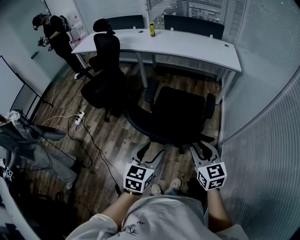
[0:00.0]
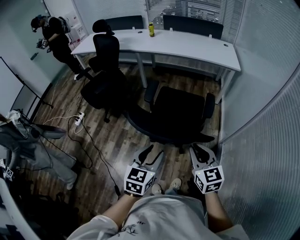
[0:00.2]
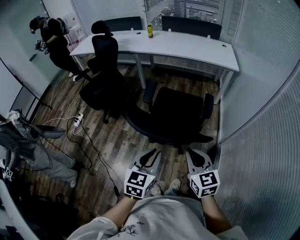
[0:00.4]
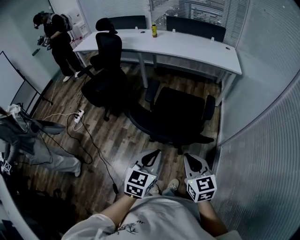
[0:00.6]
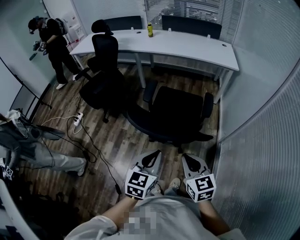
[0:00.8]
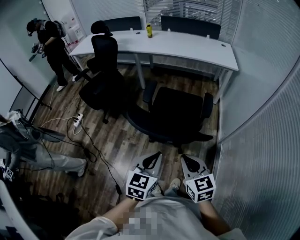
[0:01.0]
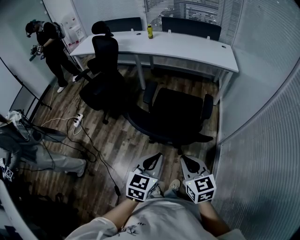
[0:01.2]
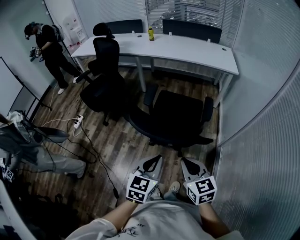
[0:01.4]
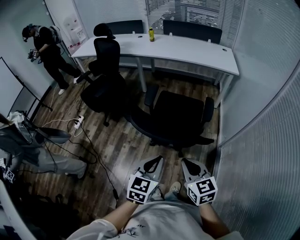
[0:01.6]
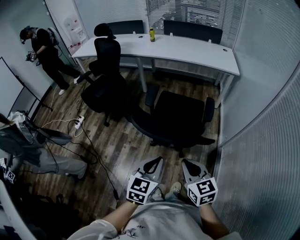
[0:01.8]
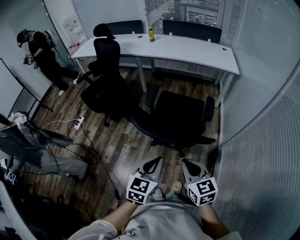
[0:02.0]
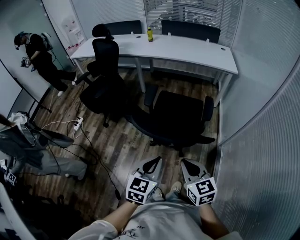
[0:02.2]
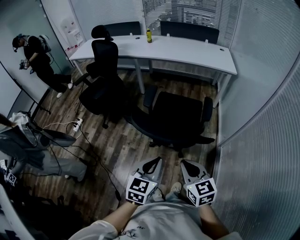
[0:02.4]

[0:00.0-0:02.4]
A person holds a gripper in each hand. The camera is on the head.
0:00.0 to 0:01.2: The right gripper heads backward, covering approximately 5 cm, and closes its fingers; the left gripper closes its fingers.
0:01.2 to 0:02.4: The grippers move only a little.

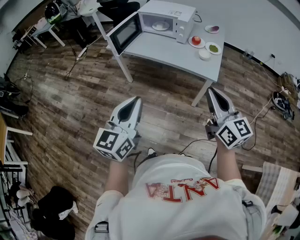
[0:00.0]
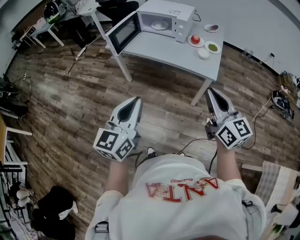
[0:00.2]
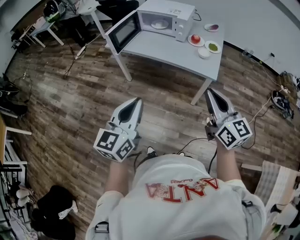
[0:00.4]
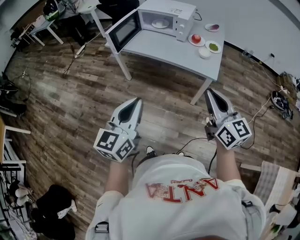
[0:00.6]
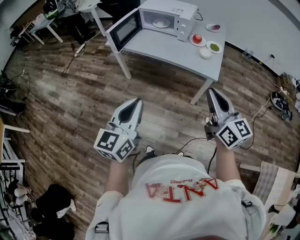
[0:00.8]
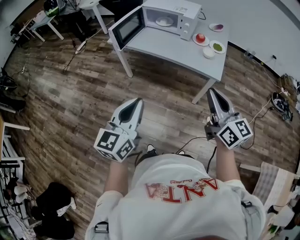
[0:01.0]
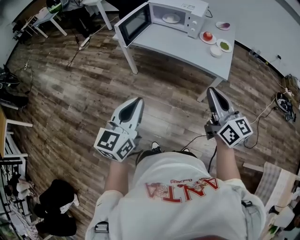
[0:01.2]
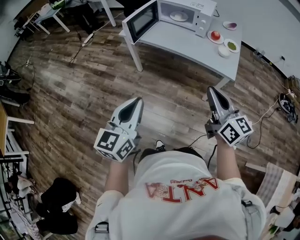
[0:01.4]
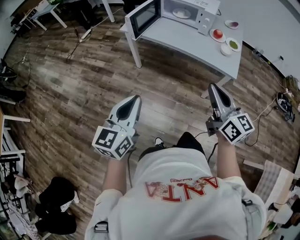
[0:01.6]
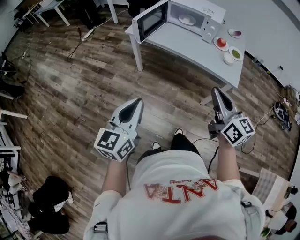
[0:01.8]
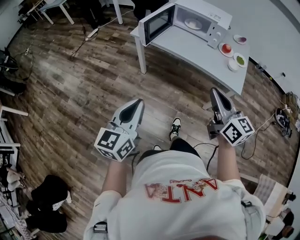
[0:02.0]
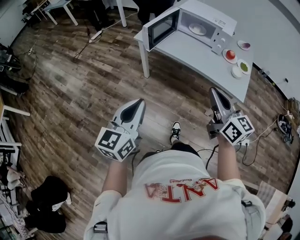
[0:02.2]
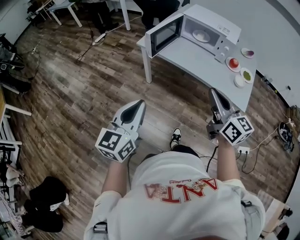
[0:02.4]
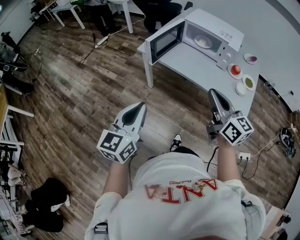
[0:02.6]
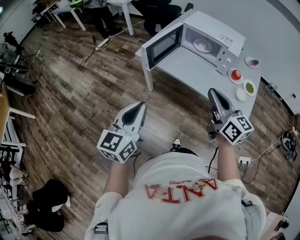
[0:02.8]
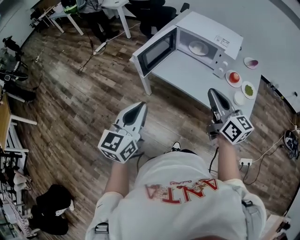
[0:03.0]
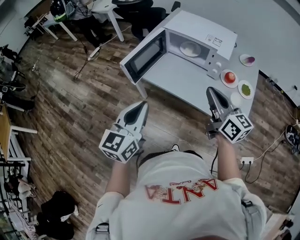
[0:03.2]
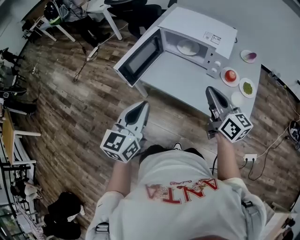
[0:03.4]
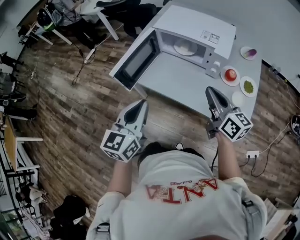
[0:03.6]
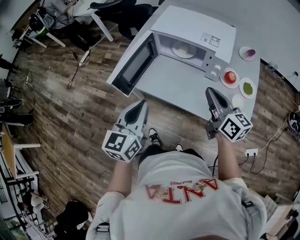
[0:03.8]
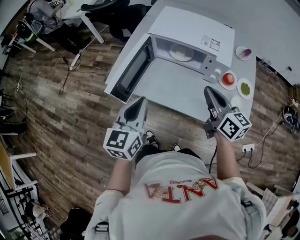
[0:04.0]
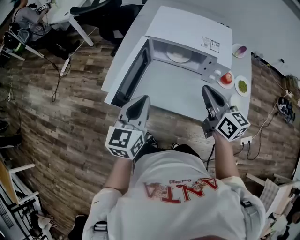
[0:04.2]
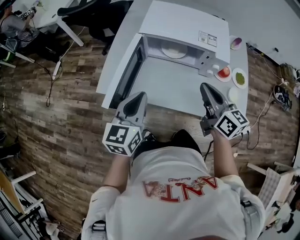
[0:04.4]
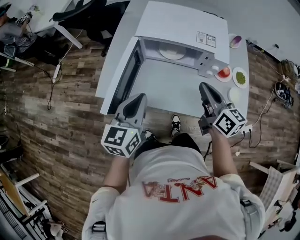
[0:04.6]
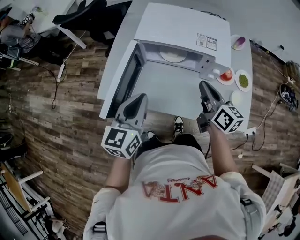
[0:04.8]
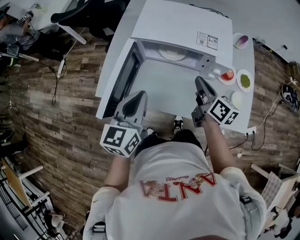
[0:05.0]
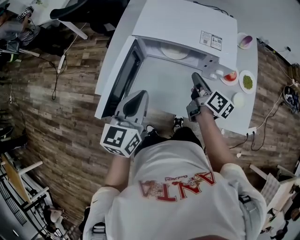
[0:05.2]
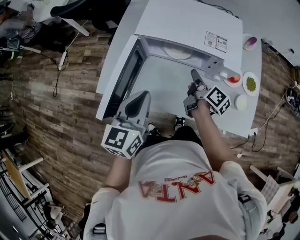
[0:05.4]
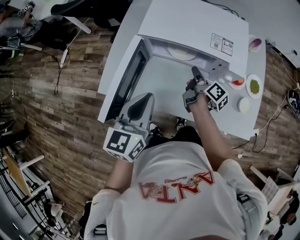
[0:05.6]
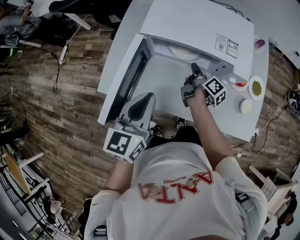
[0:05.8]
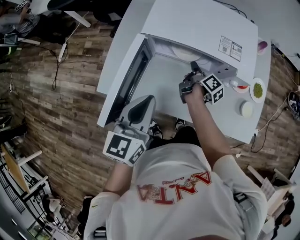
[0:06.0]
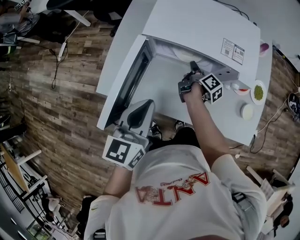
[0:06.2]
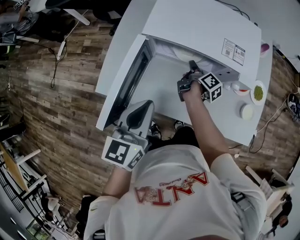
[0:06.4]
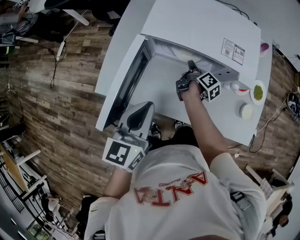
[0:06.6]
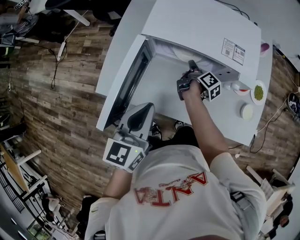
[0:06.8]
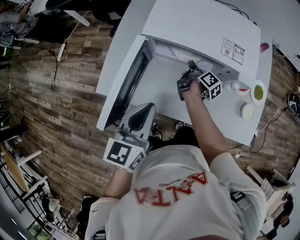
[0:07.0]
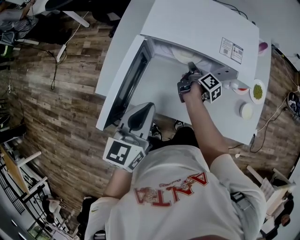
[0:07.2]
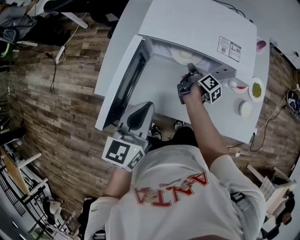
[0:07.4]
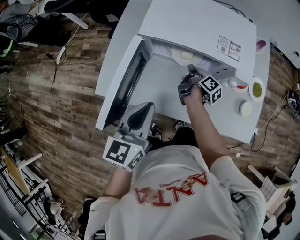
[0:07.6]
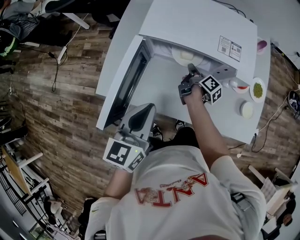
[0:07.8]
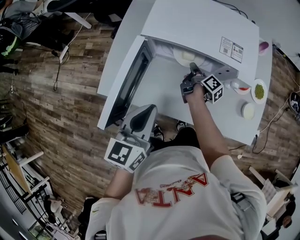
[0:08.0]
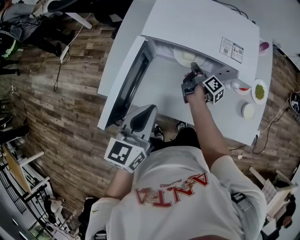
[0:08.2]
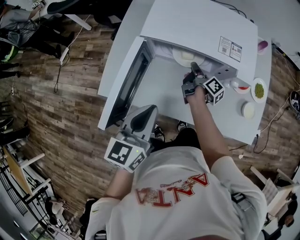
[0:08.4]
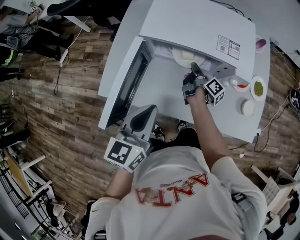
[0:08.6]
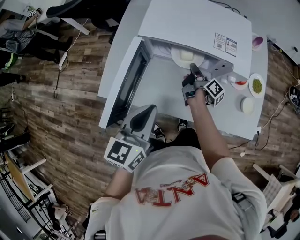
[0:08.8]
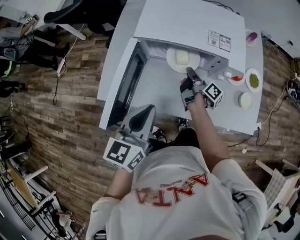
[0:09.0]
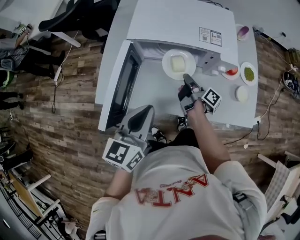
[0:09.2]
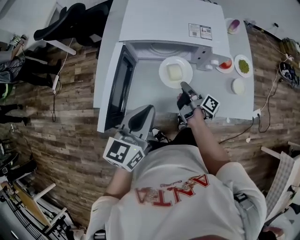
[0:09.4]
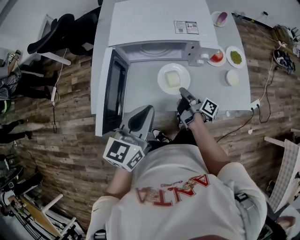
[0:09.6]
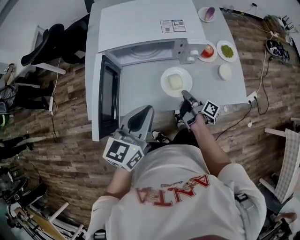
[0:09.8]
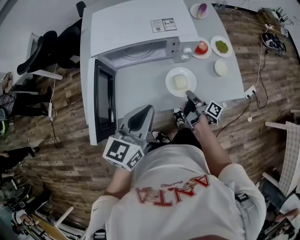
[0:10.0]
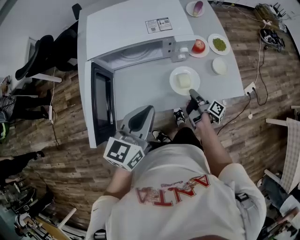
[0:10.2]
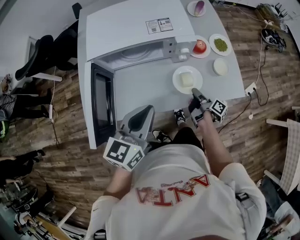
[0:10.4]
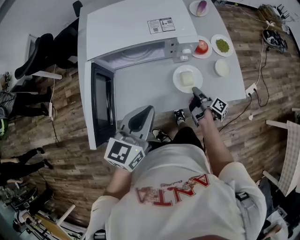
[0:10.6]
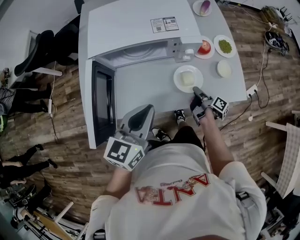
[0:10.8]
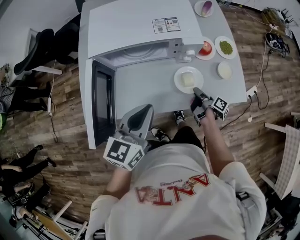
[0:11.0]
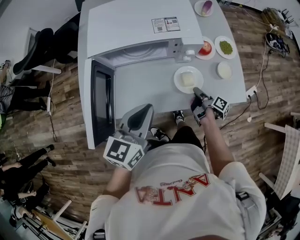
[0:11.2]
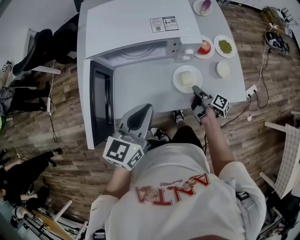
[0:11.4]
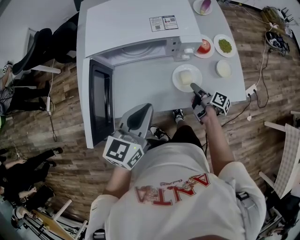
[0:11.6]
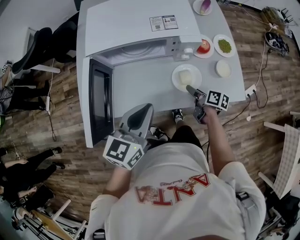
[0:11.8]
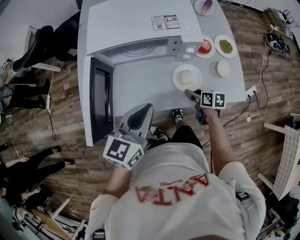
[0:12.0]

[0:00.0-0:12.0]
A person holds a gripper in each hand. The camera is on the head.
0:00.0 to 0:01.6: Both grippers travel together to the left, about 15 cm.
0:01.6 to 0:03.0: Both grippers travel together forward, approximately 25 cm.
0:03.0 to 0:04.4: The grippers both shift forward by roughly 25 cm. The right gripper rotates approximately 20 degrees.
0:04.4 to 0:06.0: The right gripper moves downward and forward, roughly 30 cm, and twists about 60 degrees clockwise, seen from behind, while the left gripper is displaced forward by roughly 5 cm.
0:06.0 to 0:07.6: There are only small adjustments of the grippers.
0:07.6 to 0:09.0: The right gripper moves about 5 cm.
0:09.0 to 0:10.4: The right gripper moves to the right and backward, roughly 25 cm. The left gripper shifts approximately 10 cm to the right, and changes its angle by approximately 20 degrees.
0:10.4 to 0:12.0: The right gripper turns by about 60 degrees, and opens its fingers.

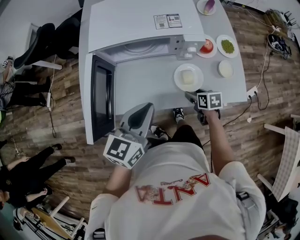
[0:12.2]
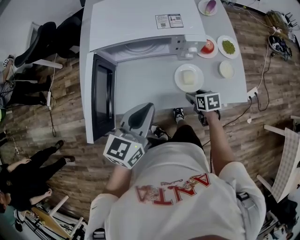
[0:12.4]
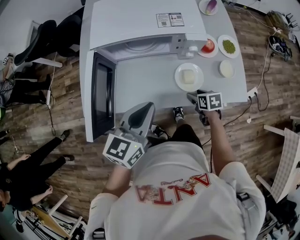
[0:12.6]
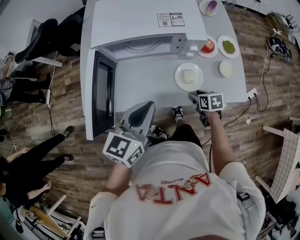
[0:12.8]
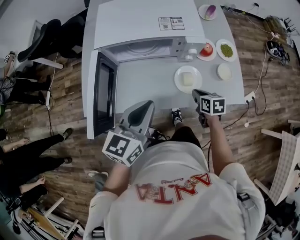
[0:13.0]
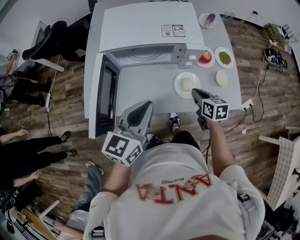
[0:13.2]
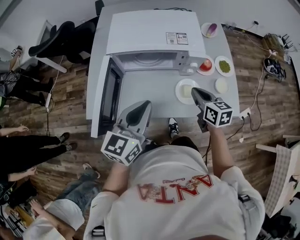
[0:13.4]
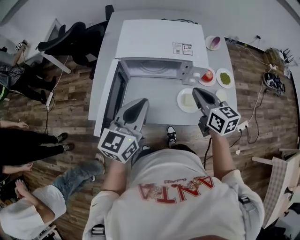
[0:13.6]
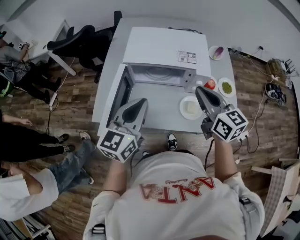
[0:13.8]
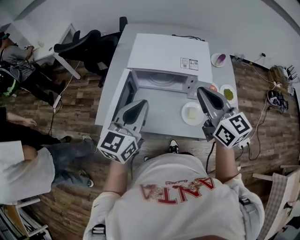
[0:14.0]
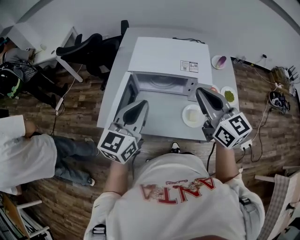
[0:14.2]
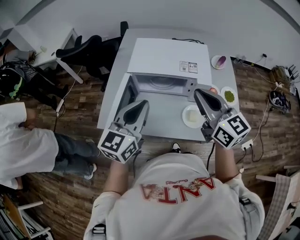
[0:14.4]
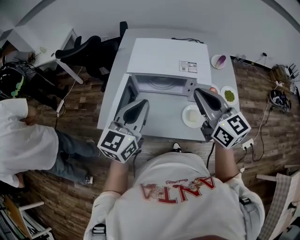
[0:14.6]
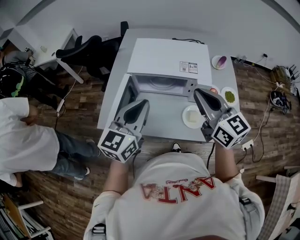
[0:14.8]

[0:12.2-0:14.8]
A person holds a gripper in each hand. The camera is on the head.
0:12.2 to 0:13.4: The left gripper shifts some 5 cm upward. The right gripper shifts approximately 20 cm upward, turns by roughly 30 degrees, and closes.
0:13.4 to 0:14.8: The left gripper goes some 10 cm upward. Meanwhile the right gripper heads upward, covering roughly 20 cm, and swivels approximately 30 degrees.

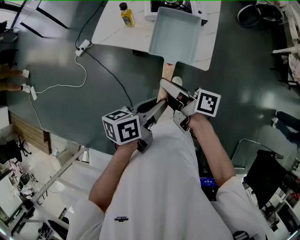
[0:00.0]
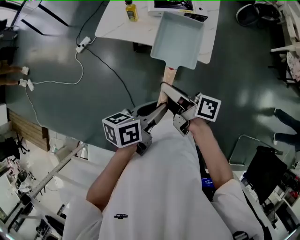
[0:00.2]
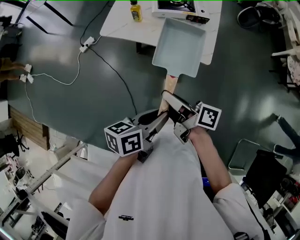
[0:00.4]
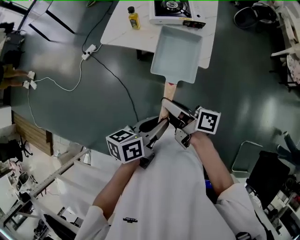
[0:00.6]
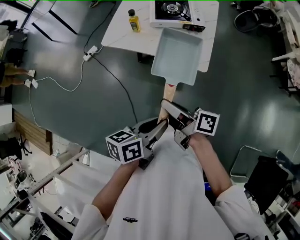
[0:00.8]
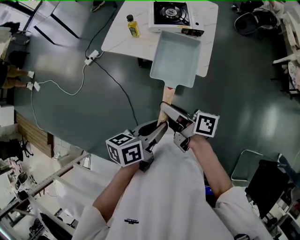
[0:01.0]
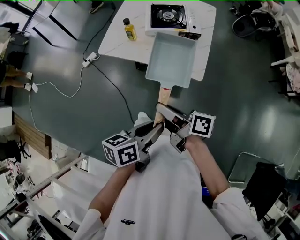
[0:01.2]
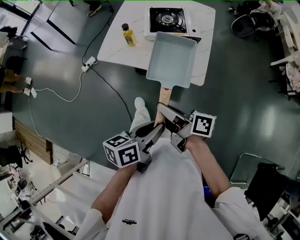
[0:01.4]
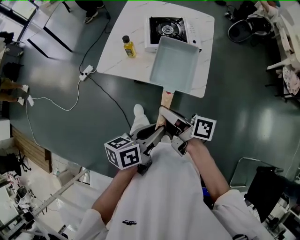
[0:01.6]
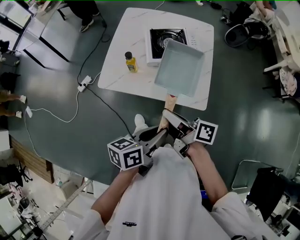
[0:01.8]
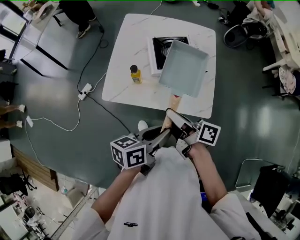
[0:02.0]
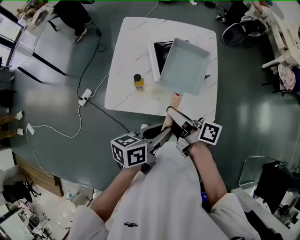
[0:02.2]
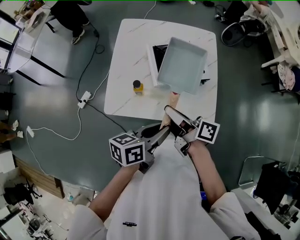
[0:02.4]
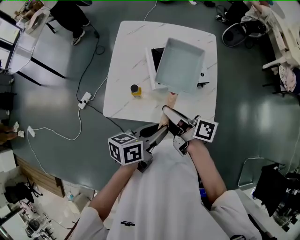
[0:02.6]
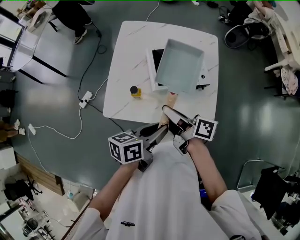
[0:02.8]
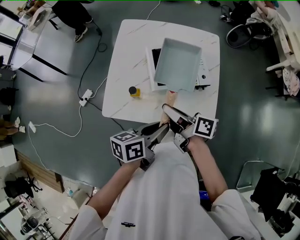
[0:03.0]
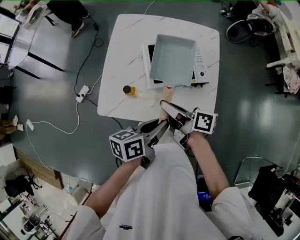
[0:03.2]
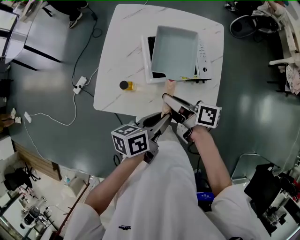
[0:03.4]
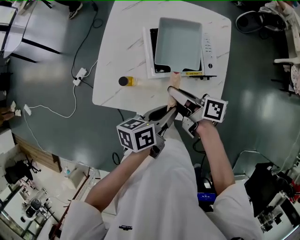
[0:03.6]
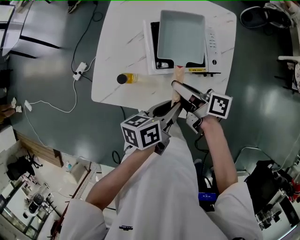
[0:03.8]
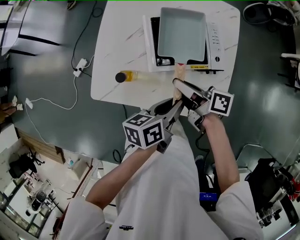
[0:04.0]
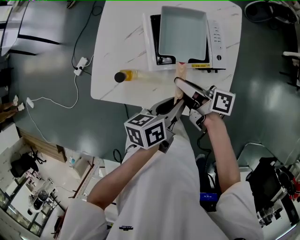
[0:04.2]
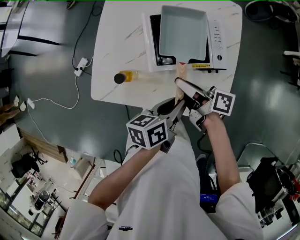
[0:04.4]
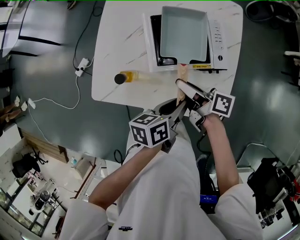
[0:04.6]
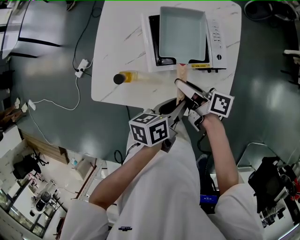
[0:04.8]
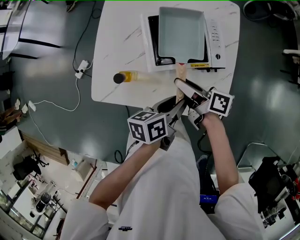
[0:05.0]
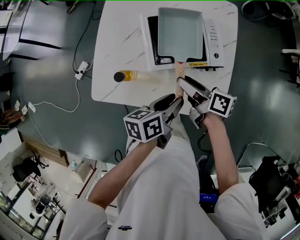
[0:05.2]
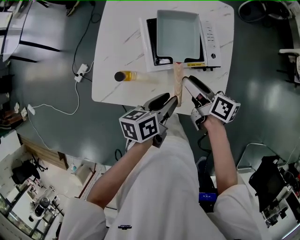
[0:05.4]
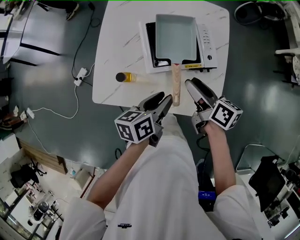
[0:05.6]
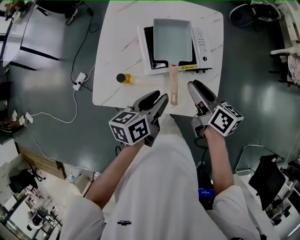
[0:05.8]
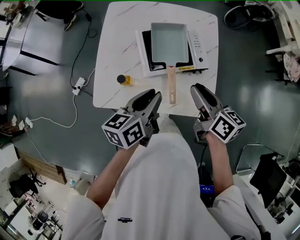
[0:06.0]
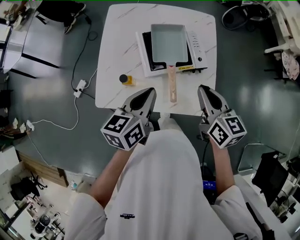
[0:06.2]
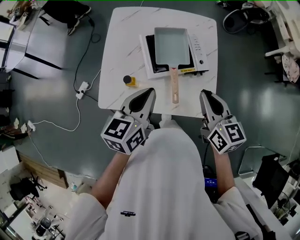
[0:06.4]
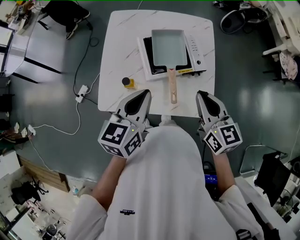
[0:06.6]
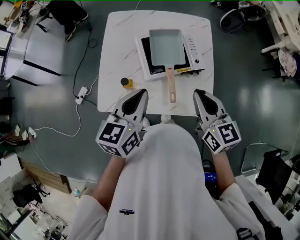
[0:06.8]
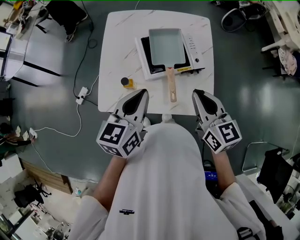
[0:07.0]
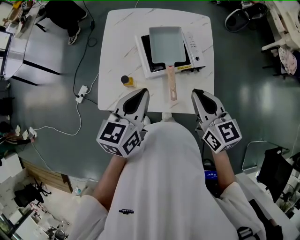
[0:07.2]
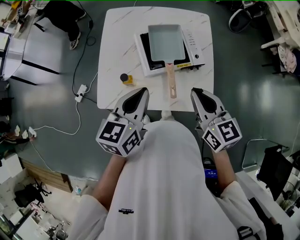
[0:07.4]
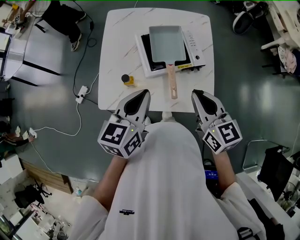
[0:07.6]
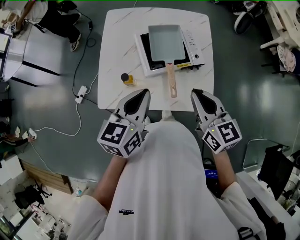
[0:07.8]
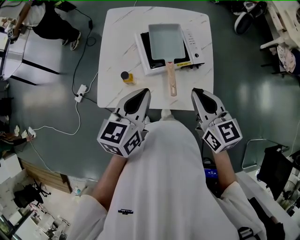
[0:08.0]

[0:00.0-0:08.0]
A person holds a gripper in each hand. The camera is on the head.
0:00.0 to 0:01.6: The left gripper moves about 10 cm backward and comes back. Meanwhile the right gripper travels backward and back again, some 10 cm each way.
0:01.6 to 0:03.2: The two grippers go about 25 cm forward.
0:03.2 to 0:04.8: The left gripper shifts roughly 15 cm downward and to the right, while the right gripper goes approximately 10 cm downward.
0:04.8 to 0:06.4: The left gripper travels upward and to the left by about 20 cm, rotates approximately 40 degrees, and closes up. The right gripper is displaced upward and to the right by approximately 20 cm, rolls counterclockwise, seen from behind, by approximately 50 degrees, and closes up.
0:06.4 to 0:08.0: There are only small adjustments of the grippers.
